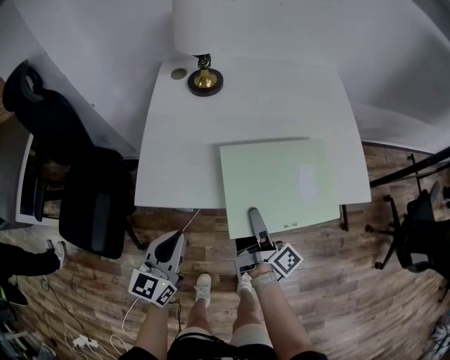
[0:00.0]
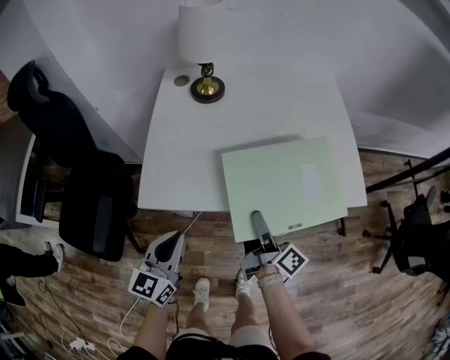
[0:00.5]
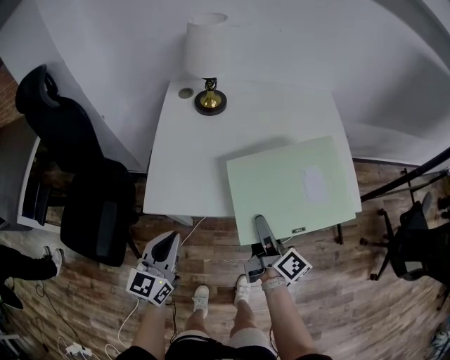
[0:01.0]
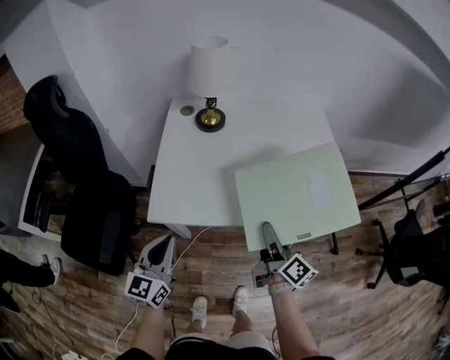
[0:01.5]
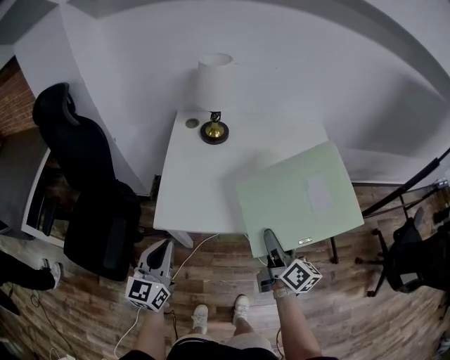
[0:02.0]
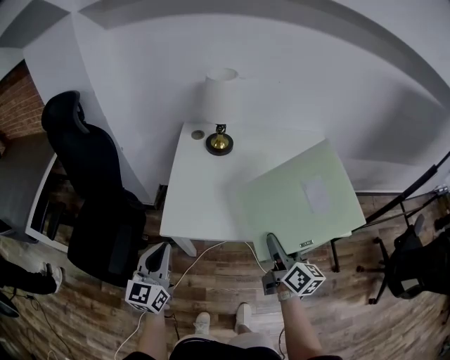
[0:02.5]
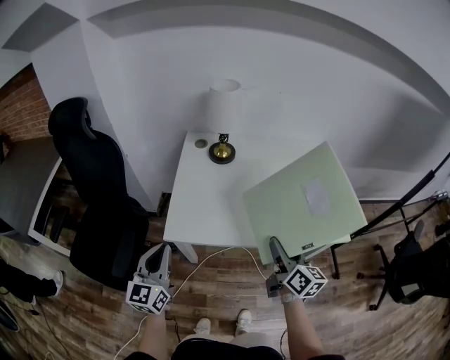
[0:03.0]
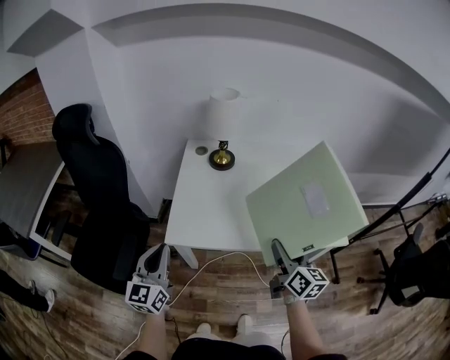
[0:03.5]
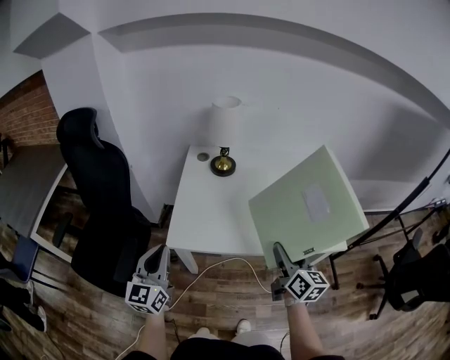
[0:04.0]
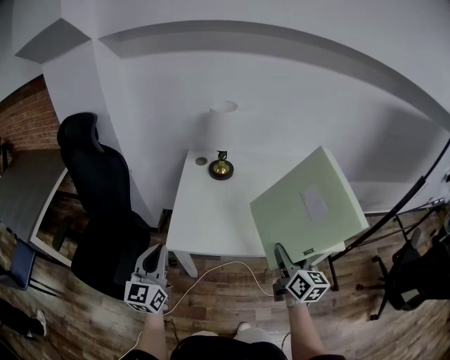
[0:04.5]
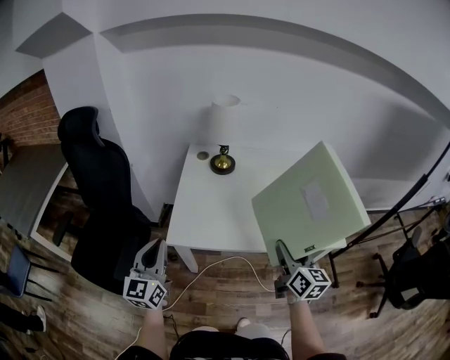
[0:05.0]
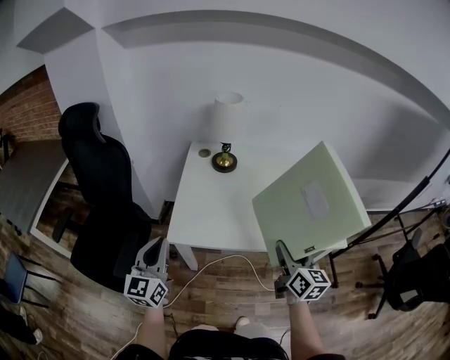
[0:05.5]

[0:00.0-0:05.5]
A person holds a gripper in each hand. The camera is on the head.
0:00.0 to 0:02.0: The right gripper moves upward, roughly 10 cm, and rotates about 40 degrees, while the left gripper heads upward and to the left, covering roughly 10 cm.
0:02.0 to 0:03.5: Both grippers travel together upward, roughly 5 cm.
0:03.5 to 0:05.5: There are only small adjustments of the grippers.

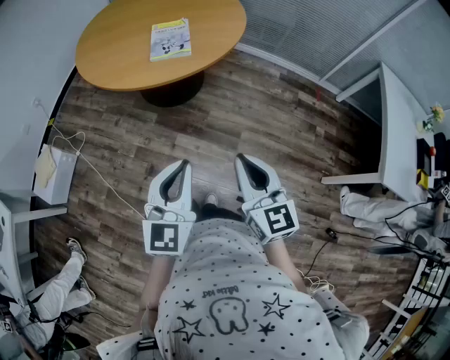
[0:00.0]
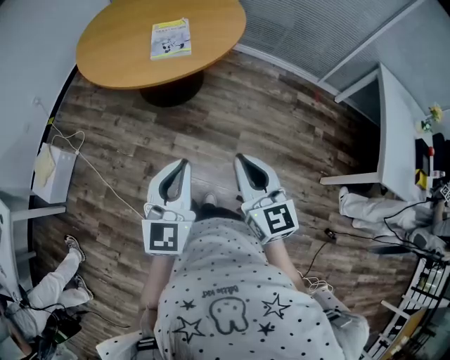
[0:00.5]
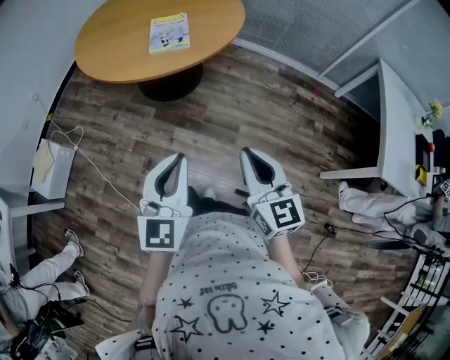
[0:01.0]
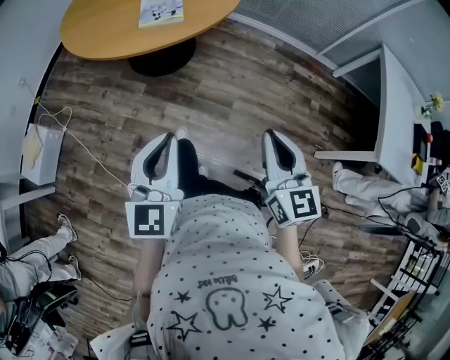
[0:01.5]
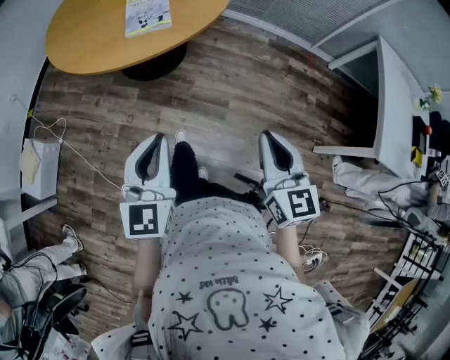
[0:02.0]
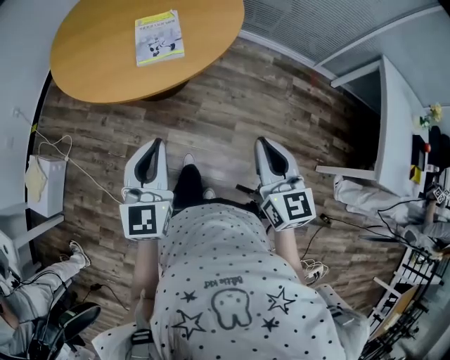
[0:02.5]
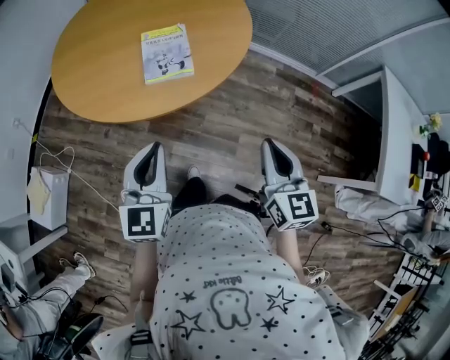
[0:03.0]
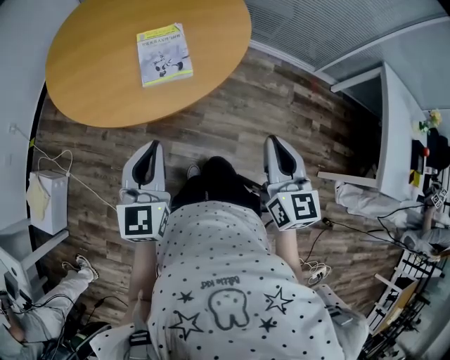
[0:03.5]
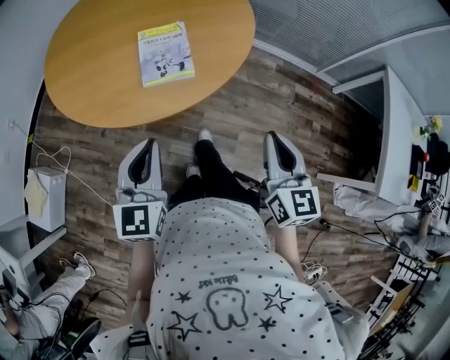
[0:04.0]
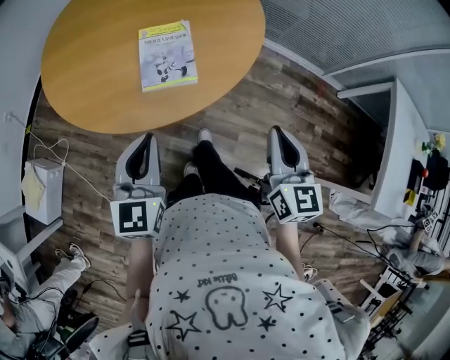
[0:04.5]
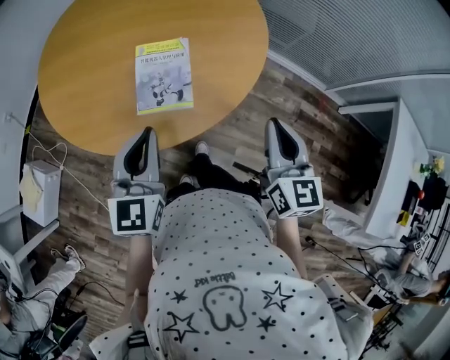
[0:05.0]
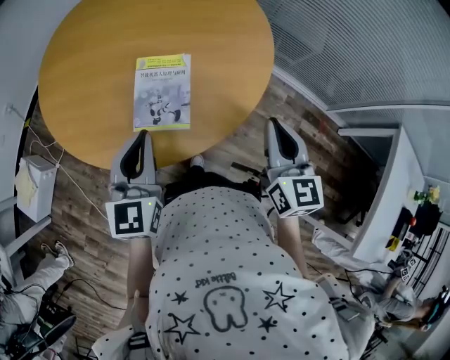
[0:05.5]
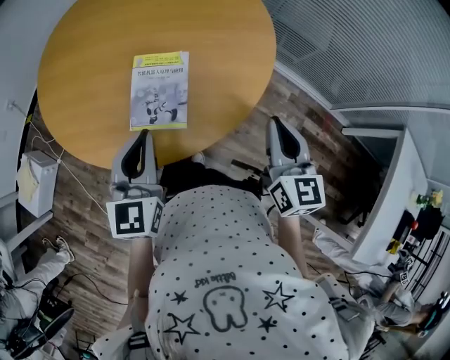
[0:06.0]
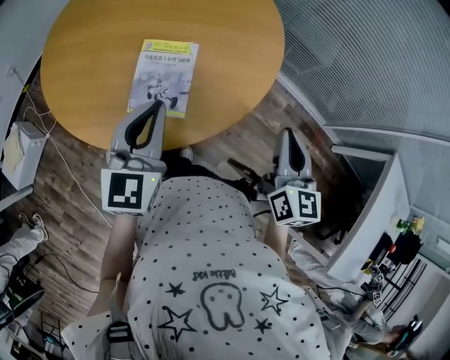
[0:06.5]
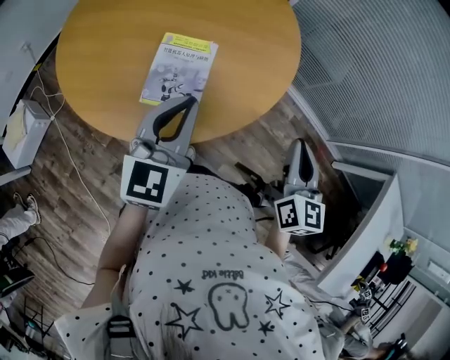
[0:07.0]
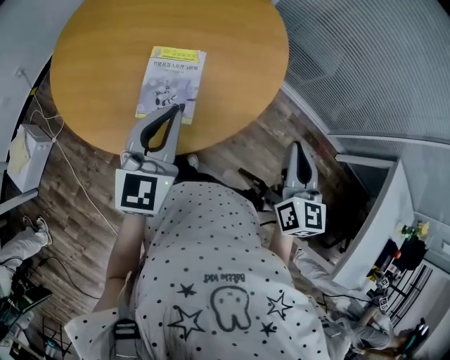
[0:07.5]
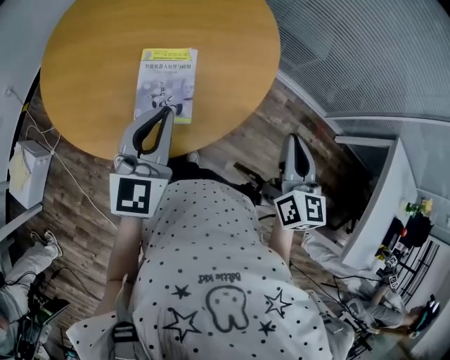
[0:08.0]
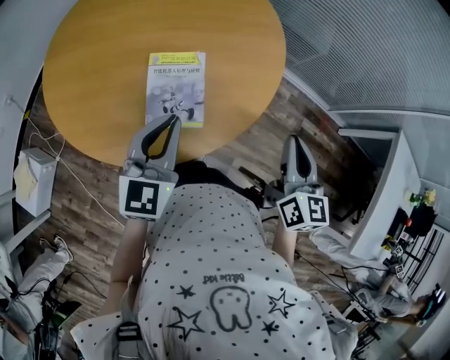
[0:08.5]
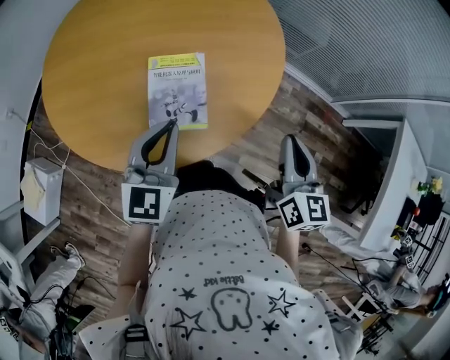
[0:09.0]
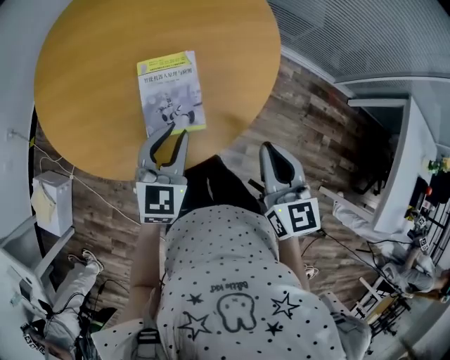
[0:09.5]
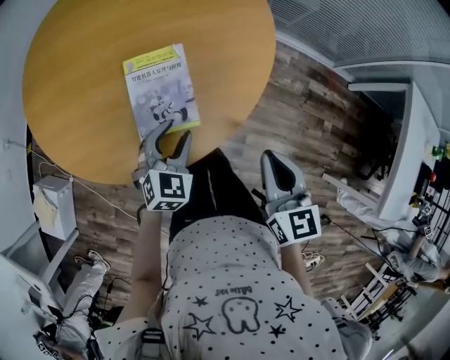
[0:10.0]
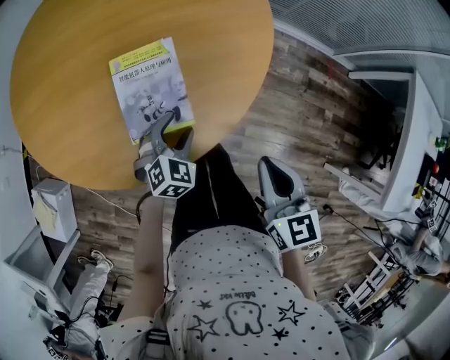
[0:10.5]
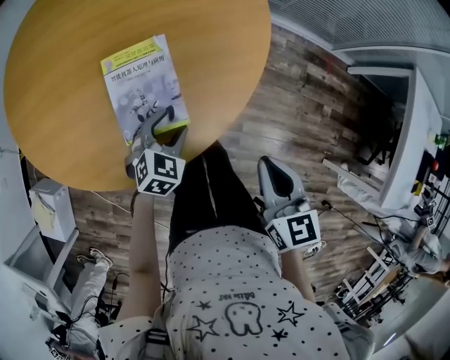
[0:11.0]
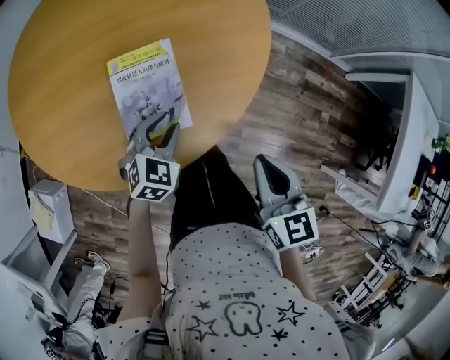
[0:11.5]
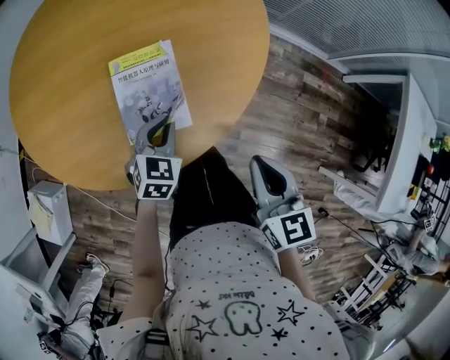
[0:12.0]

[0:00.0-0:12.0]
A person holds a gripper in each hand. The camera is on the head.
0:00.0 to 0:02.0: The left gripper shifts about 5 cm forward; the right gripper heads to the right, covering roughly 5 cm.
0:02.0 to 0:04.0: The right gripper heads forward, covering some 25 cm; the left gripper is displaced forward and to the left by about 25 cm.
0:04.0 to 0:06.0: Both grippers move forward, approximately 25 cm.
0:08.0 to 0:10.0: The right gripper shifts approximately 10 cm to the left, backward and downward; the left gripper goes approximately 20 cm downward, turns by some 40 degrees, and opens up.
0:10.0 to 0:12.0: The left gripper closes its fingers.

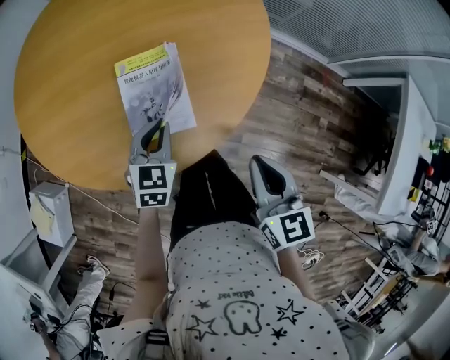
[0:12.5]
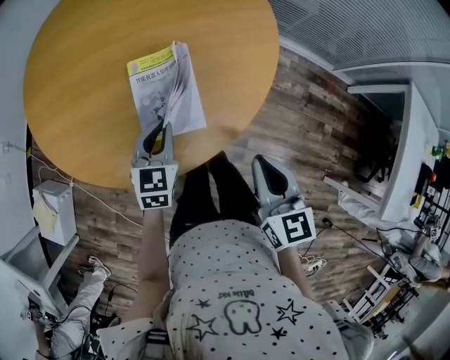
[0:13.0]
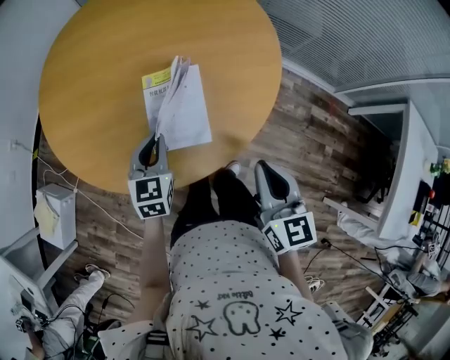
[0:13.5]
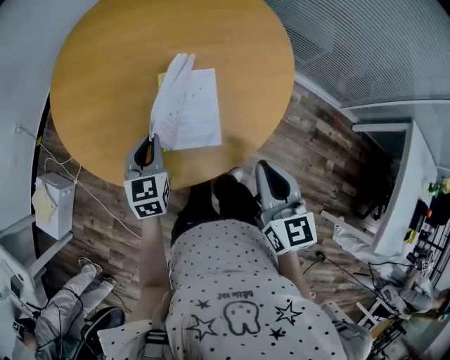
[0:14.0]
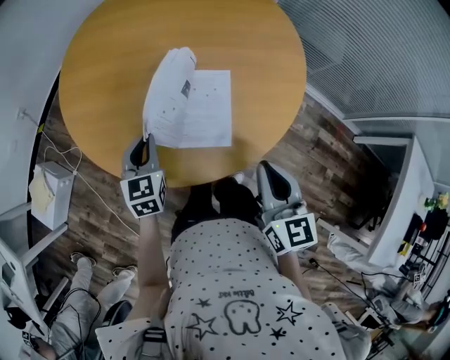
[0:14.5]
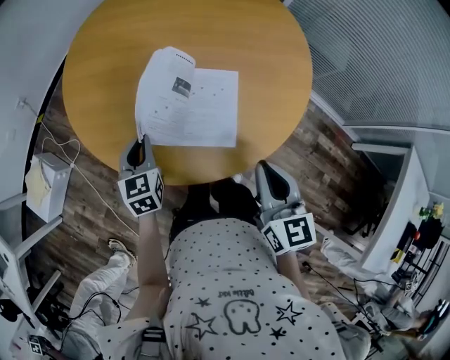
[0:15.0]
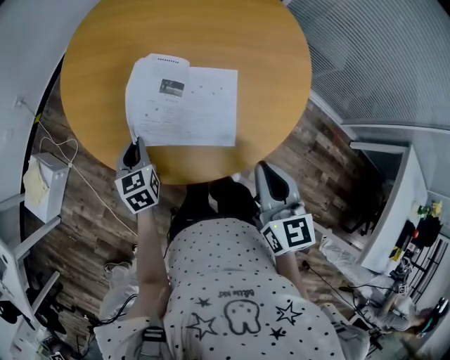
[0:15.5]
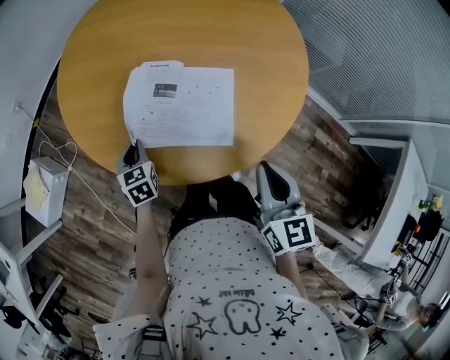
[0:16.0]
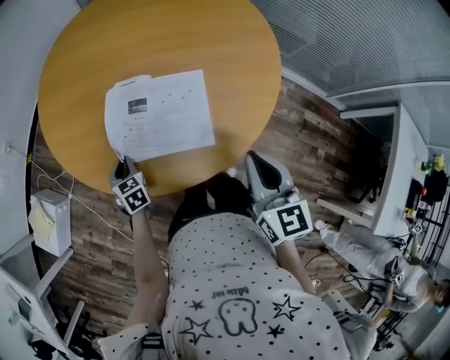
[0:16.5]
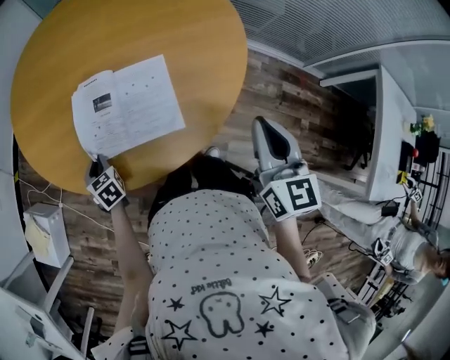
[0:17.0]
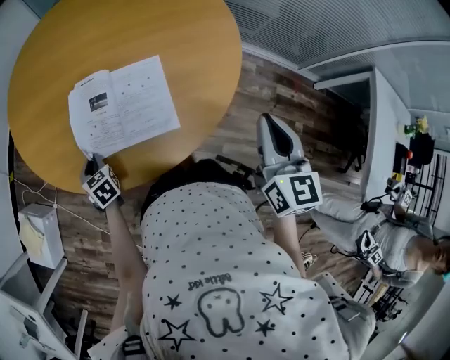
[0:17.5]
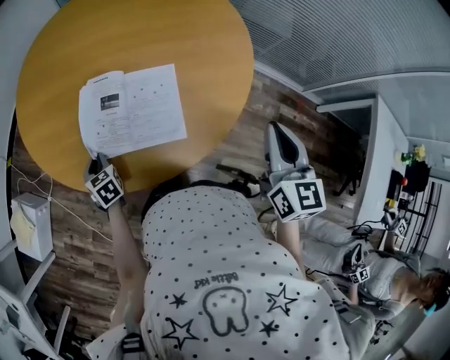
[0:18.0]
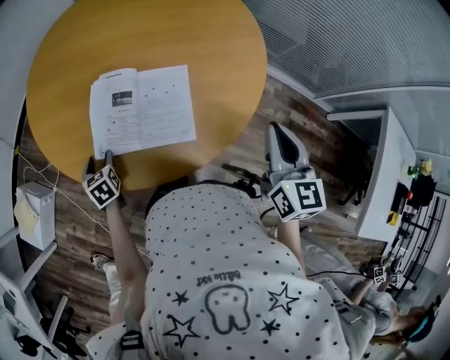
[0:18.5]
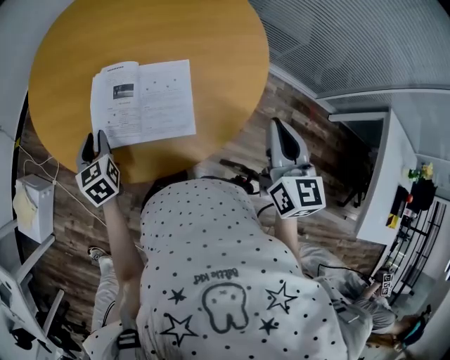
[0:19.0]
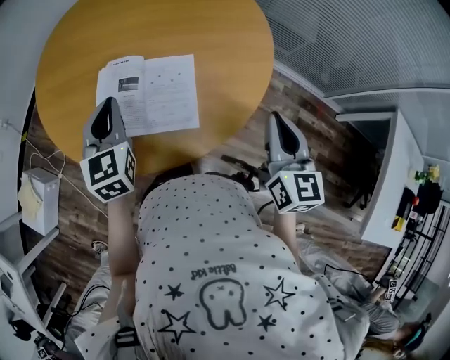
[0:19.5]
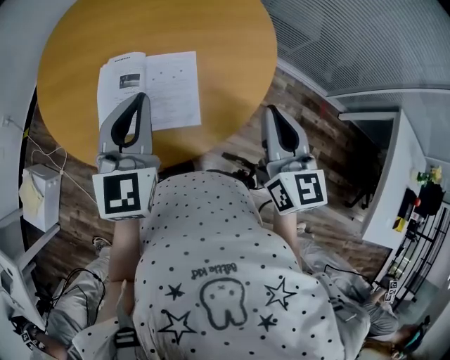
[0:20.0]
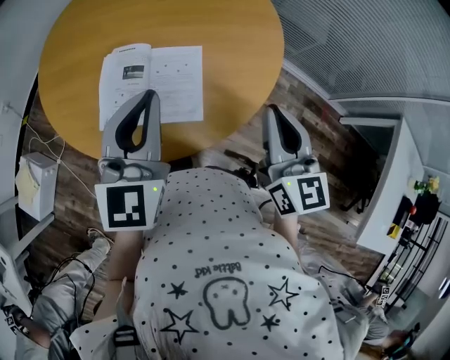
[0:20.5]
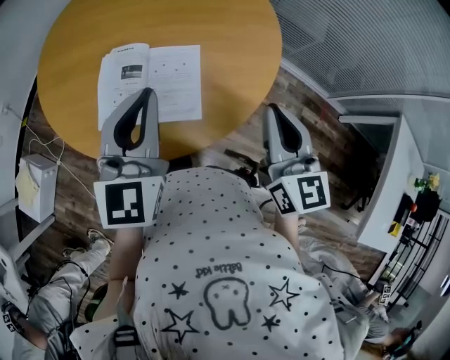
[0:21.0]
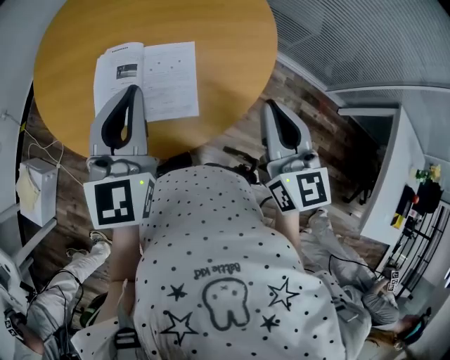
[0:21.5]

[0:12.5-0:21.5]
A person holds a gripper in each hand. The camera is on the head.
0:12.5 to 0:14.5: The right gripper shifts approximately 5 cm to the left; the left gripper goes approximately 15 cm to the left, and swivels some 30 degrees.
0:14.5 to 0:17.0: The left gripper is displaced downward and to the left by approximately 15 cm, and swivels roughly 20 degrees; the right gripper shifts roughly 10 cm to the right.
0:17.0 to 0:19.5: The left gripper travels upward and to the right by approximately 25 cm, tilts its fingers some 30 degrees upward, and opens and closes again.
0:19.5 to 0:21.5: The left gripper is displaced upward and to the right by about 10 cm.
